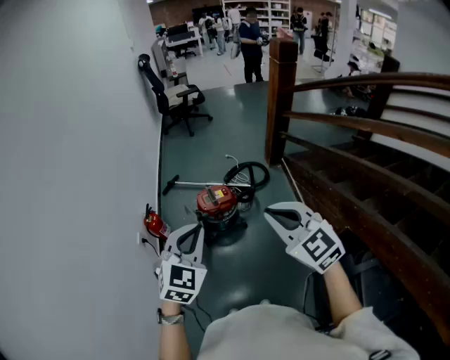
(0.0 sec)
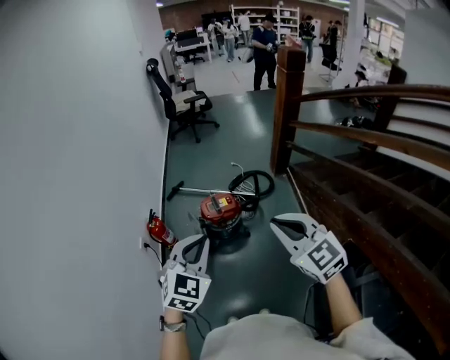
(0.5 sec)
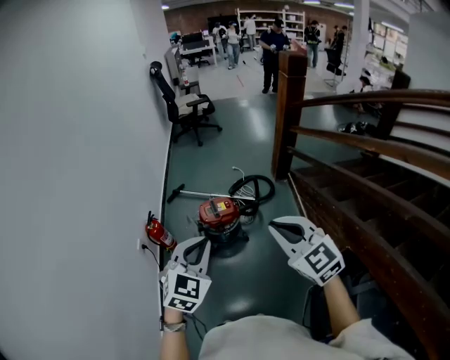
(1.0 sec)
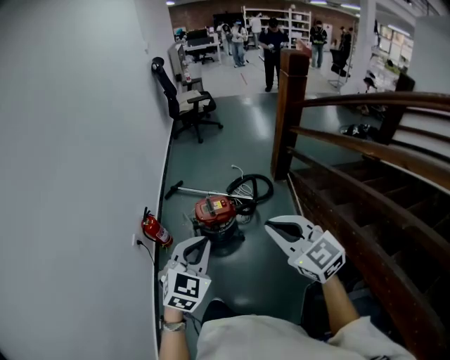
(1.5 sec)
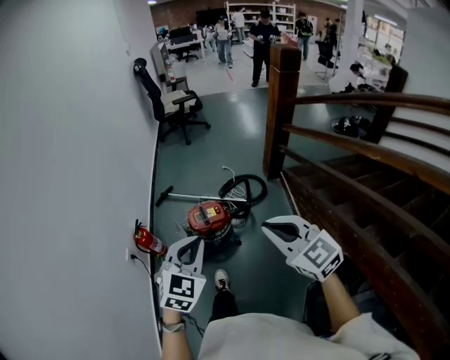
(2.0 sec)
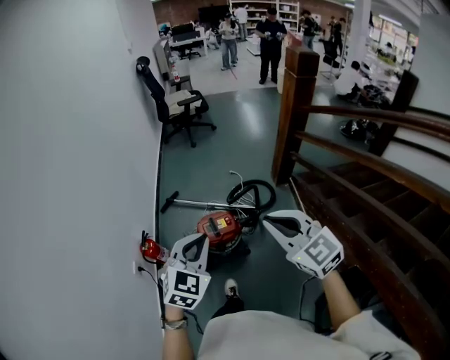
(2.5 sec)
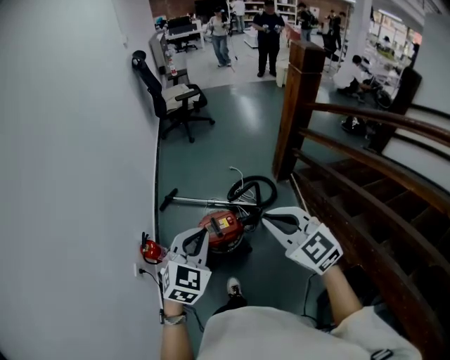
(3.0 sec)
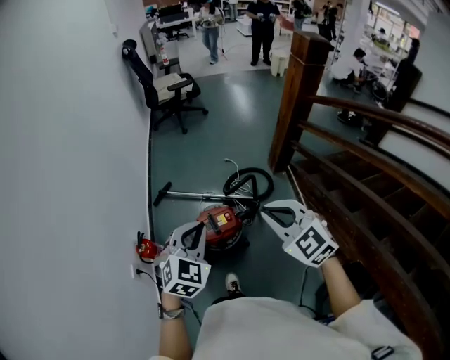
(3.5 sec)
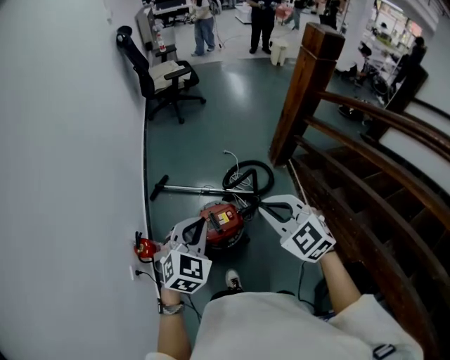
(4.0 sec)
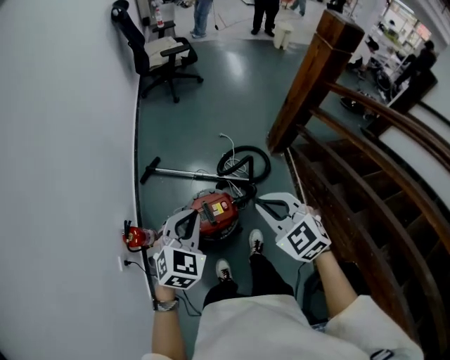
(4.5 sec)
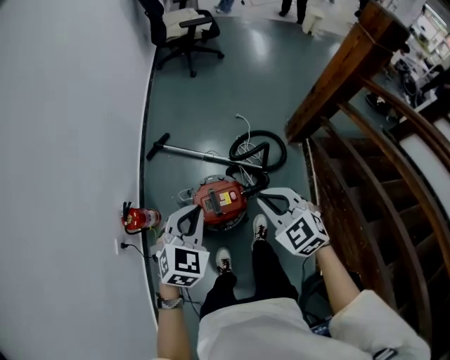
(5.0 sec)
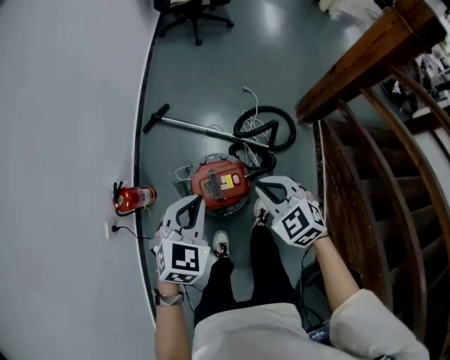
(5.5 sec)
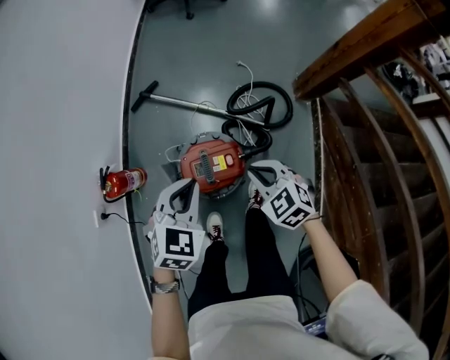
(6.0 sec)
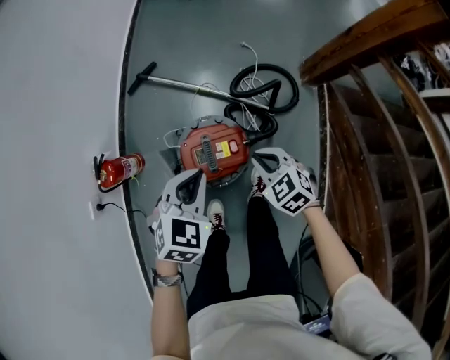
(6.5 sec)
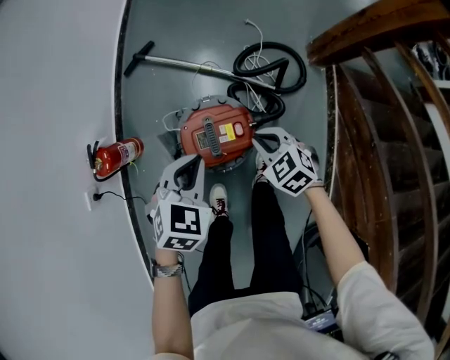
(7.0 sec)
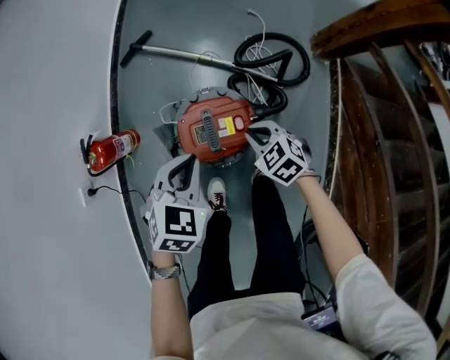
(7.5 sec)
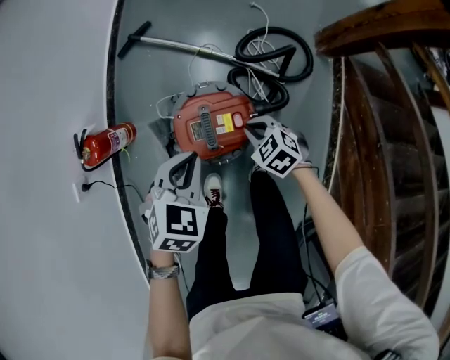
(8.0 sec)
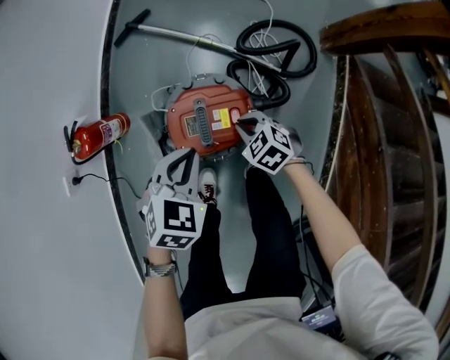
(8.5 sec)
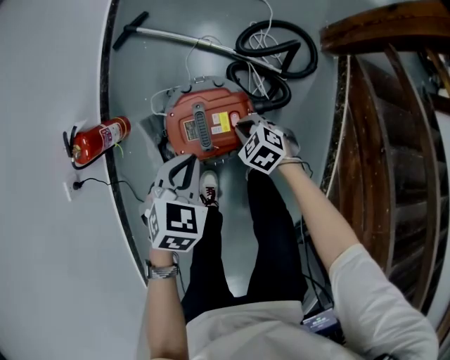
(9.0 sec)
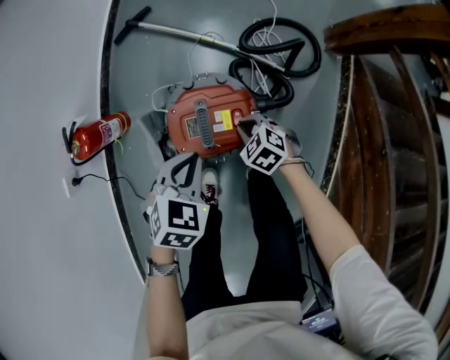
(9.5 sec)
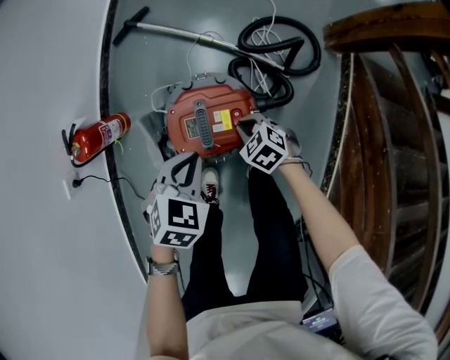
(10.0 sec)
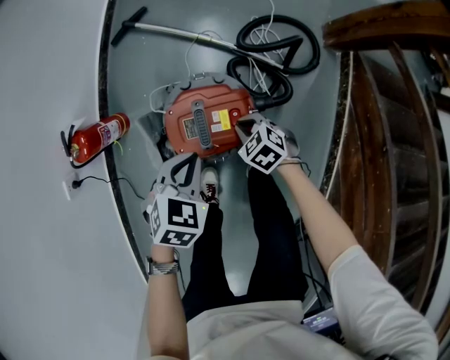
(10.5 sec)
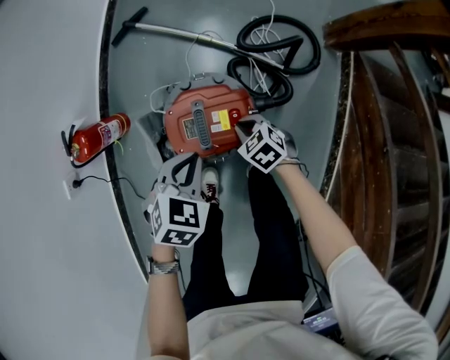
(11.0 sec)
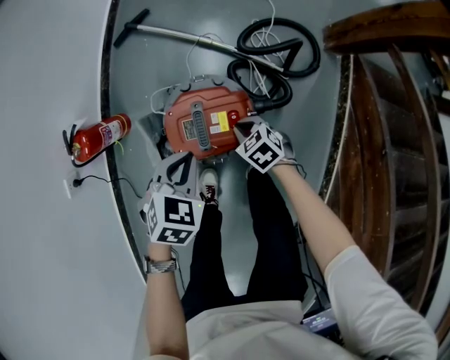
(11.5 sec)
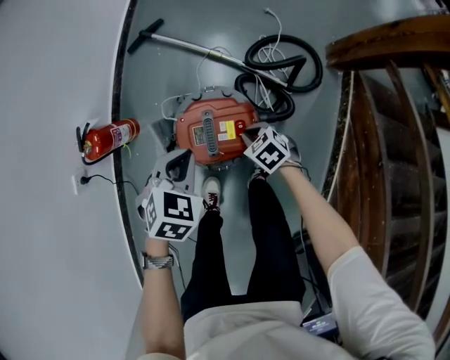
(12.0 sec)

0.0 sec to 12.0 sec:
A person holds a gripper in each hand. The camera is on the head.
0.0 sec to 2.0 sec: The two grippers go some 10 cm forward and to the right.
2.0 sec to 4.0 sec: Both grippers travel together forward, about 30 cm.
4.0 sec to 6.0 sec: The right gripper travels downward by about 35 cm, and turns by about 20 degrees, while the left gripper goes approximately 25 cm downward and forward, and changes its angle by about 20 degrees.
6.0 sec to 8.0 sec: The left gripper goes about 15 cm downward; the right gripper goes roughly 25 cm downward.
8.0 sec to 10.0 sec: The grippers both shift downward by about 5 cm.
10.0 sec to 12.0 sec: The grippers stay close to where they were, moving slightly.

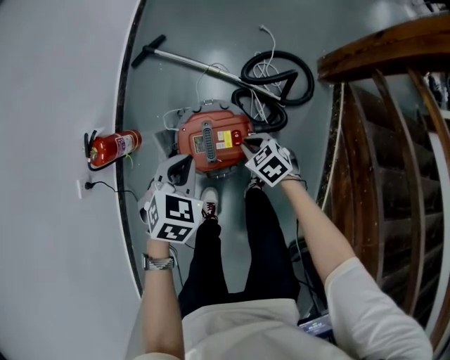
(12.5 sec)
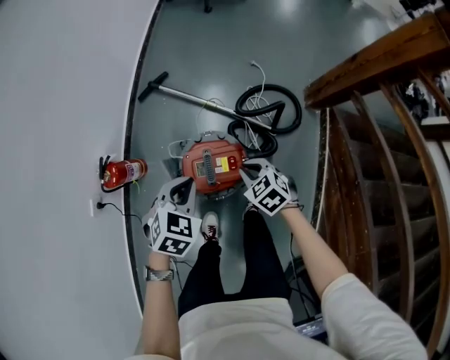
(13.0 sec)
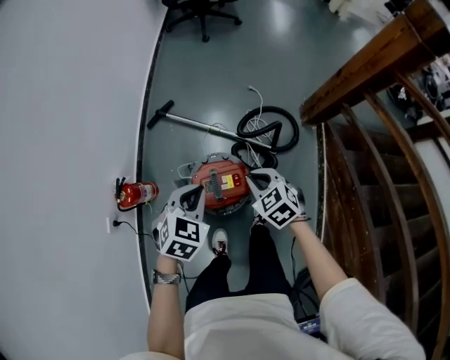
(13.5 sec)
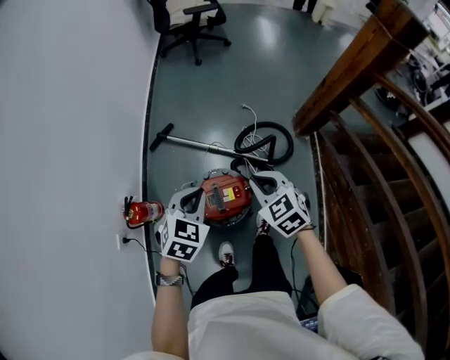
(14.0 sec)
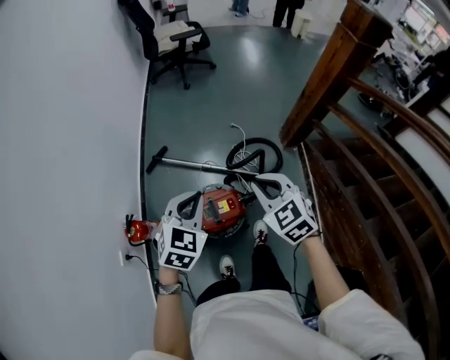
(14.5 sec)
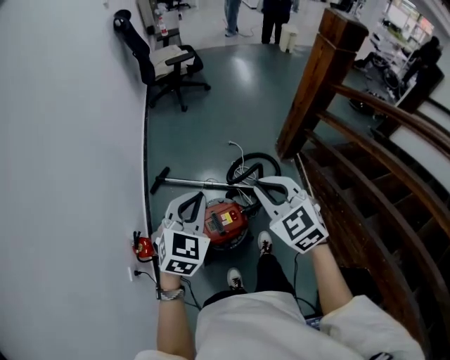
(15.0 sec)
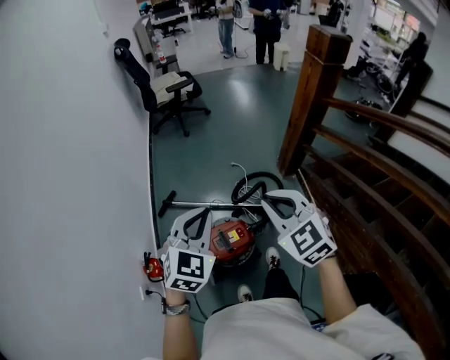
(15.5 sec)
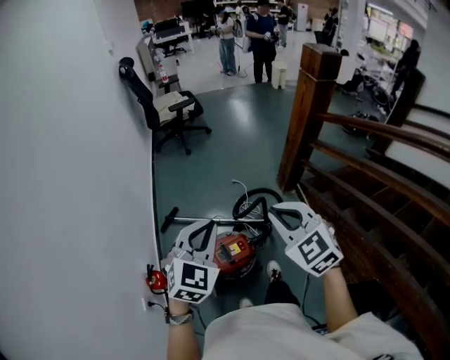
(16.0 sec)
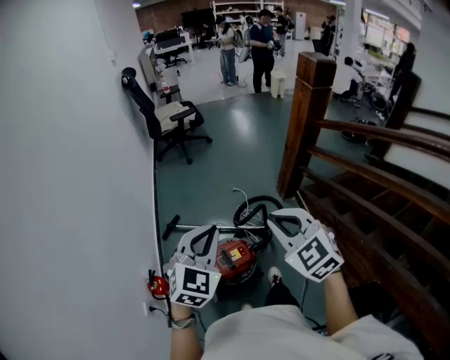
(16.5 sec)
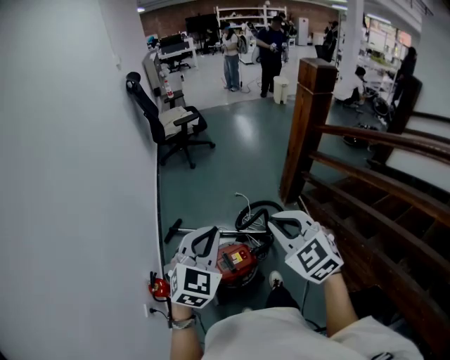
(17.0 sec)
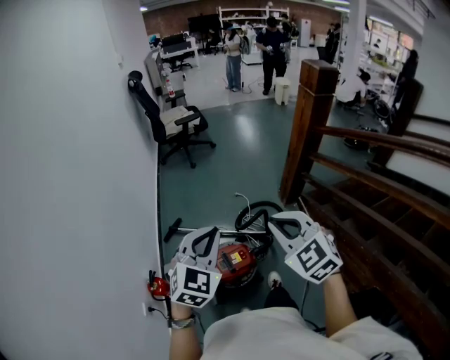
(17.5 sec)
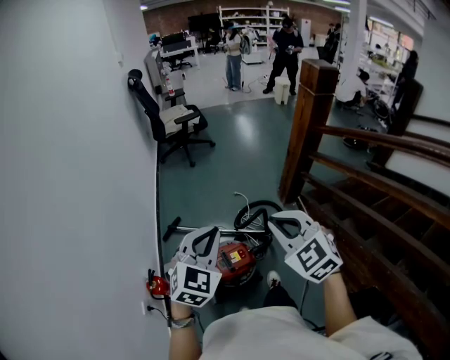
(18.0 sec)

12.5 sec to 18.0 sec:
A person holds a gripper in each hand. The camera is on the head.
12.5 sec to 14.5 sec: The left gripper moves upward, some 30 cm, and changes its angle by approximately 30 degrees, while the right gripper moves upward, some 40 cm, and rotates approximately 40 degrees.
14.5 sec to 16.0 sec: The left gripper heads upward, covering some 15 cm, and rotates about 20 degrees; the right gripper shifts some 20 cm upward and backward.
16.0 sec to 18.0 sec: The grippers move only a little.

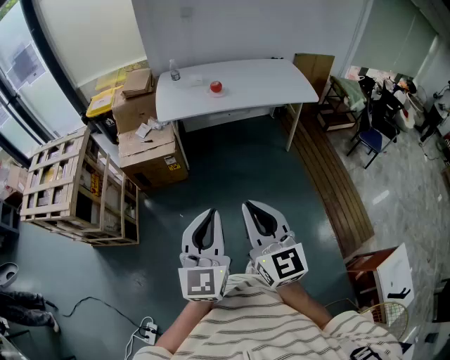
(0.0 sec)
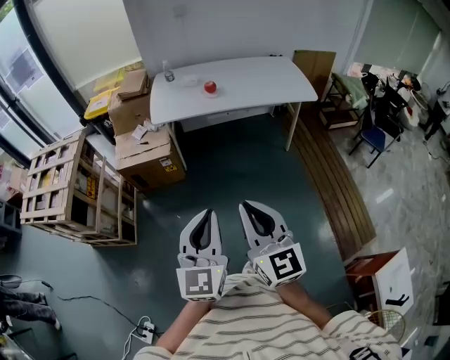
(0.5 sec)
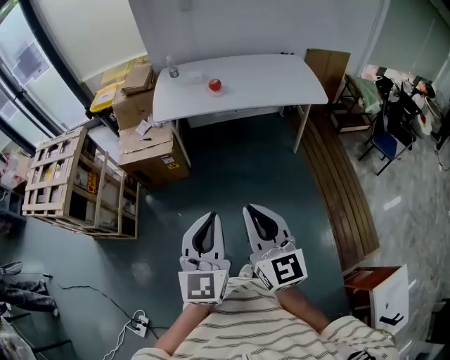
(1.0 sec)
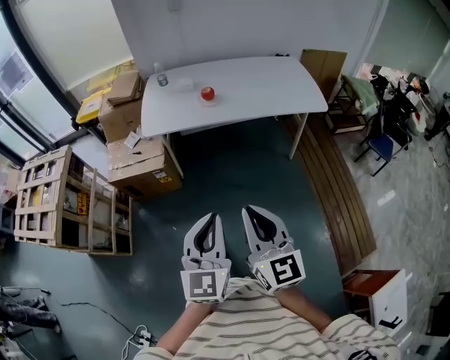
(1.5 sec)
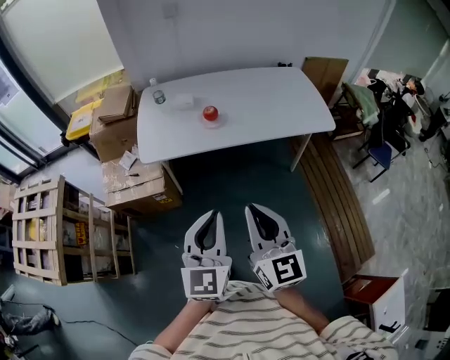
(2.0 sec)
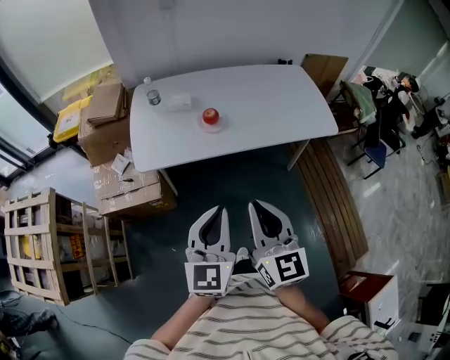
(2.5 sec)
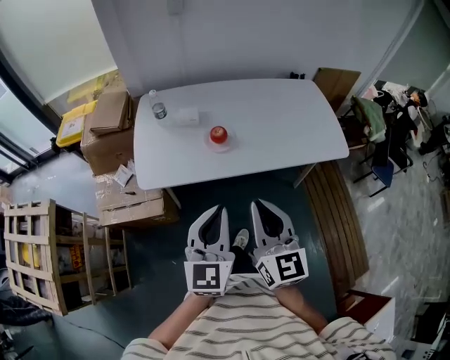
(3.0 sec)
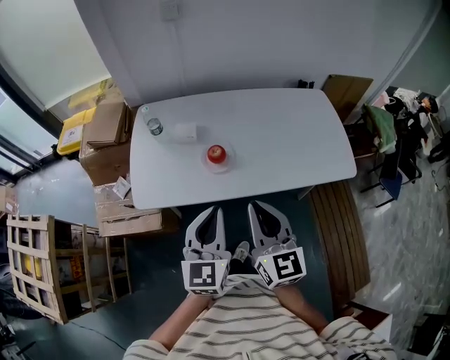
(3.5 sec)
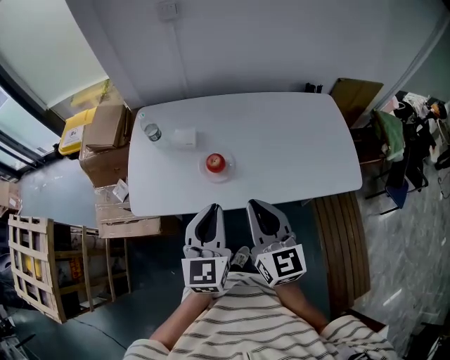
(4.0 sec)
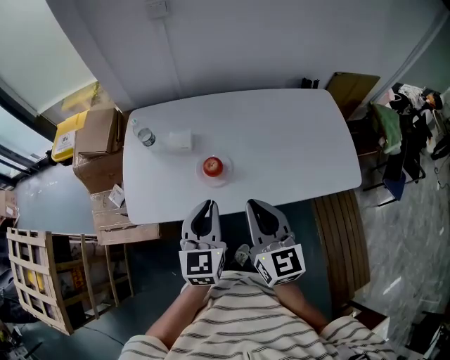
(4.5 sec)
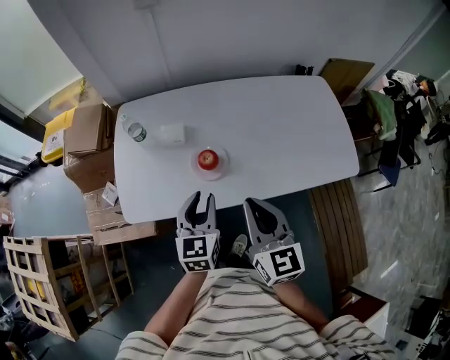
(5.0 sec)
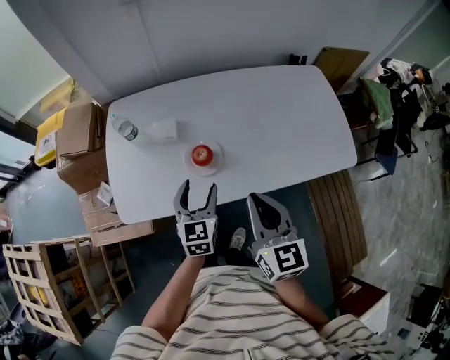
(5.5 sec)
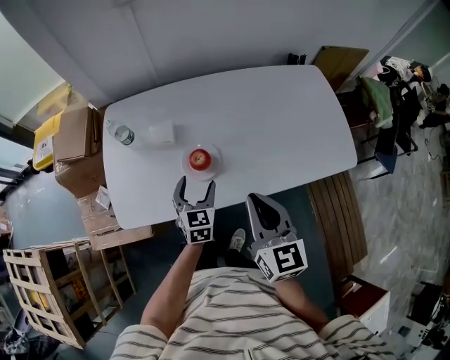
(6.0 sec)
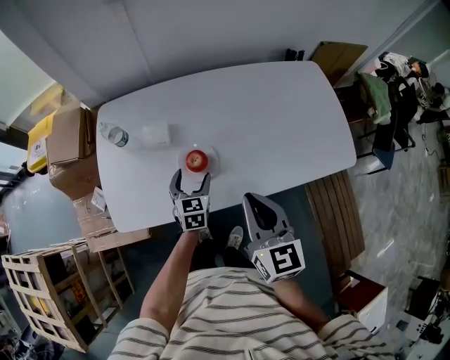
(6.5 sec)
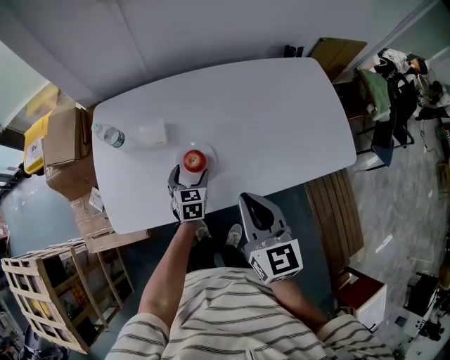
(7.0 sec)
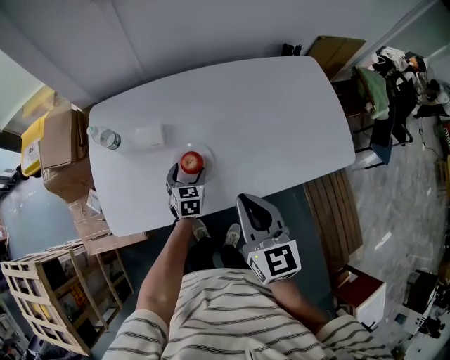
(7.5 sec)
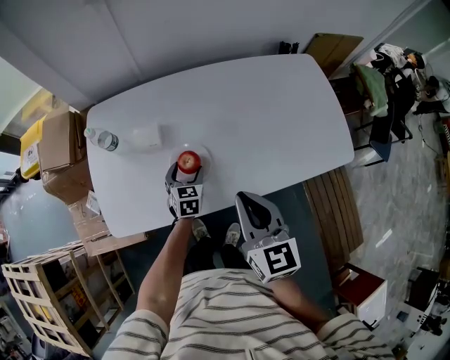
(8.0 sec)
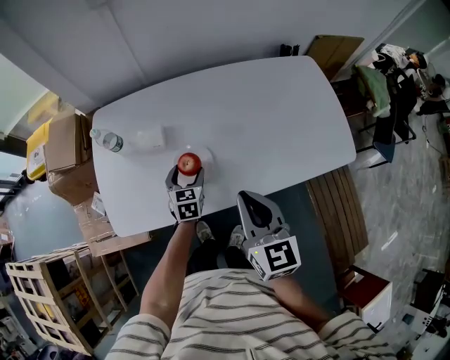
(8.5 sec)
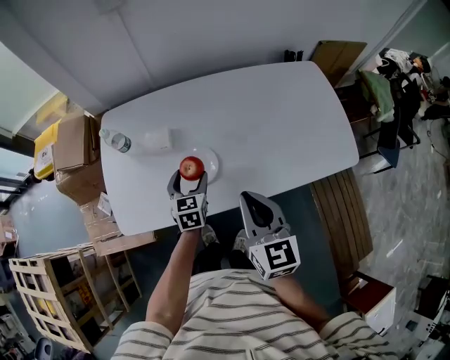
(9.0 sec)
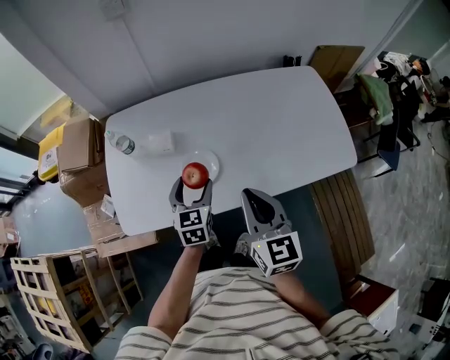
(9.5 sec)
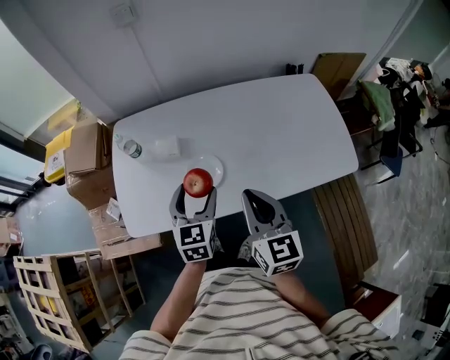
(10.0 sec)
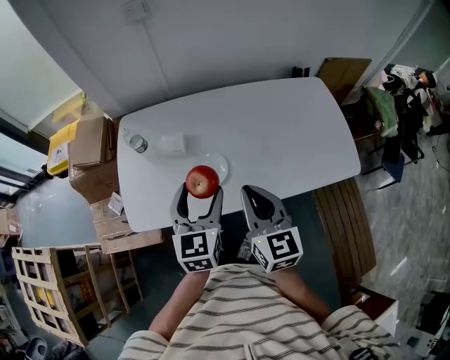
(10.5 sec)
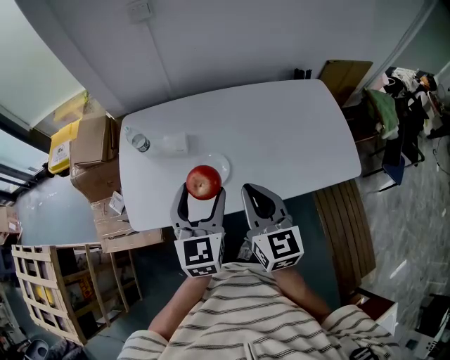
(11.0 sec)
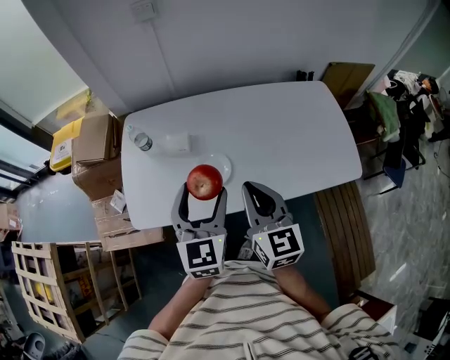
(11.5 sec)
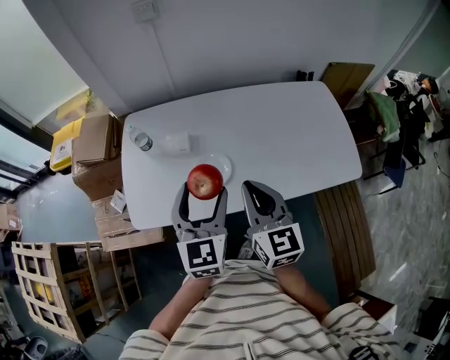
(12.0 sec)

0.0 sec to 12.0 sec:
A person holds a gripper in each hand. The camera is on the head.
0.0 sec to 2.0 sec: The grippers both shift forward by approximately 35 cm.
2.0 sec to 4.0 sec: Both grippers travel together forward, roughly 35 cm.
4.0 sec to 6.0 sec: The left gripper goes roughly 25 cm downward and forward, turns by about 20 degrees, and opens up; the right gripper heads forward, covering roughly 5 cm.
6.0 sec to 8.0 sec: The left gripper travels downward and forward by approximately 15 cm.
8.0 sec to 10.0 sec: The left gripper moves upward and backward, roughly 25 cm.
10.0 sec to 12.0 sec: The left gripper heads upward, covering approximately 10 cm.
